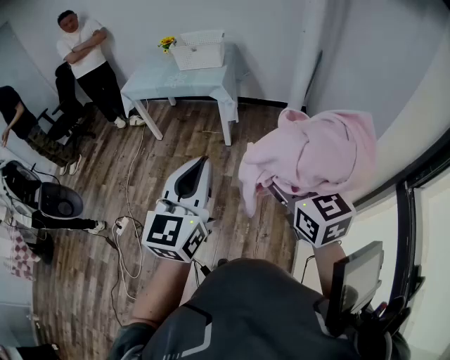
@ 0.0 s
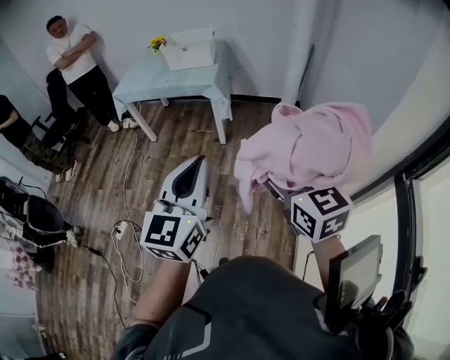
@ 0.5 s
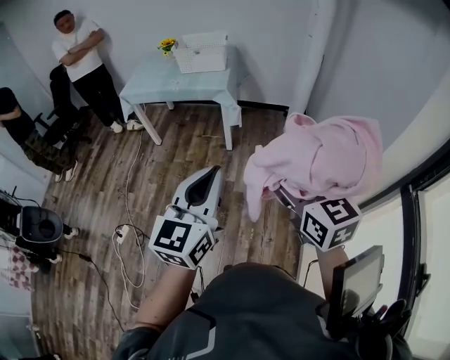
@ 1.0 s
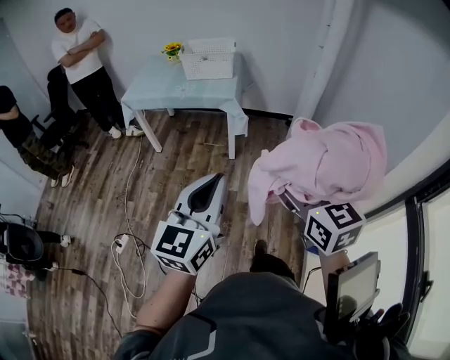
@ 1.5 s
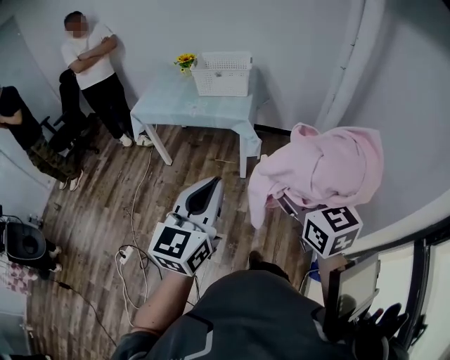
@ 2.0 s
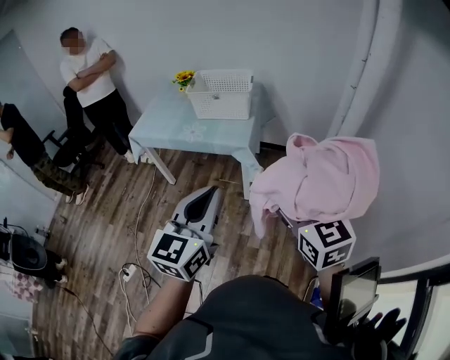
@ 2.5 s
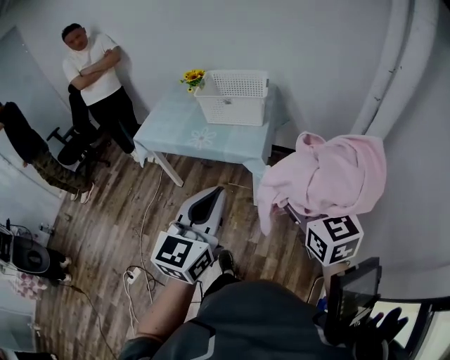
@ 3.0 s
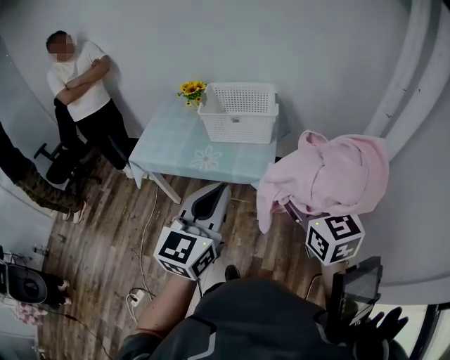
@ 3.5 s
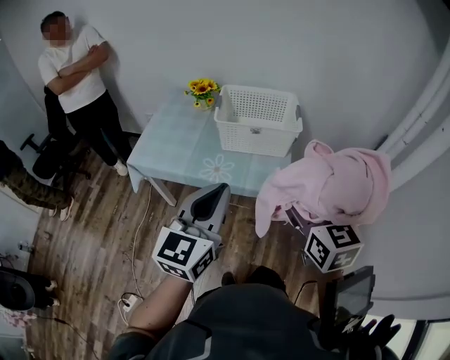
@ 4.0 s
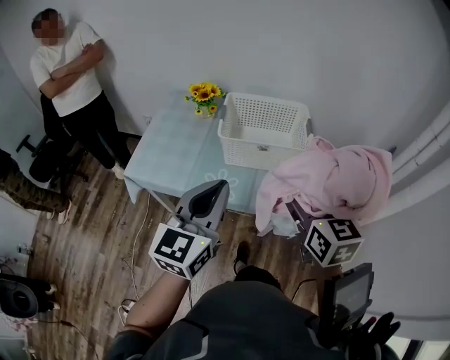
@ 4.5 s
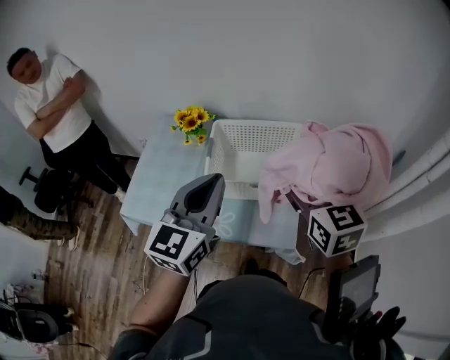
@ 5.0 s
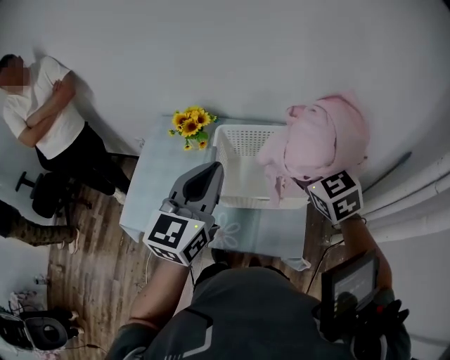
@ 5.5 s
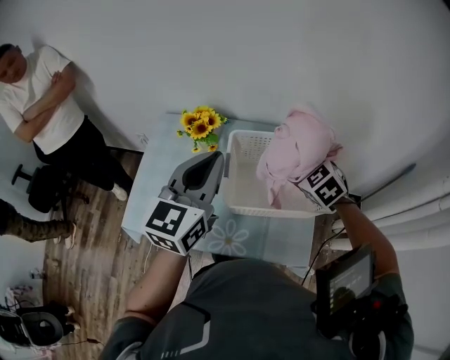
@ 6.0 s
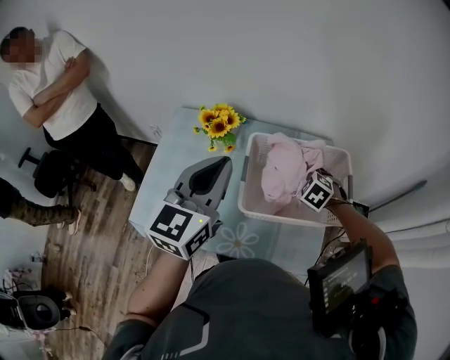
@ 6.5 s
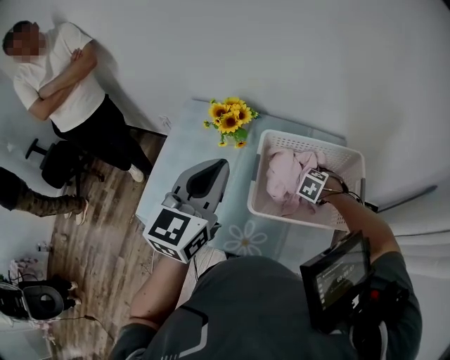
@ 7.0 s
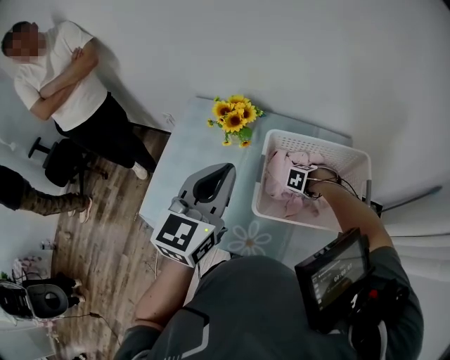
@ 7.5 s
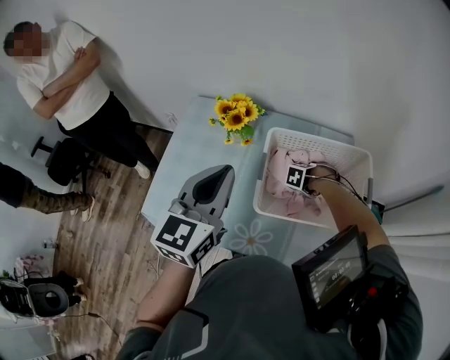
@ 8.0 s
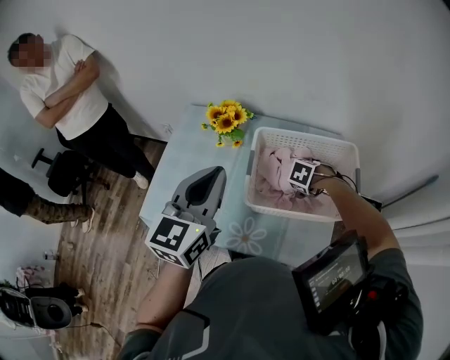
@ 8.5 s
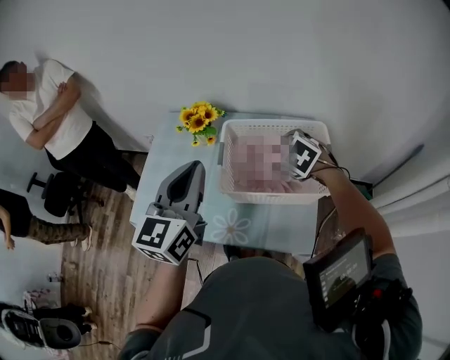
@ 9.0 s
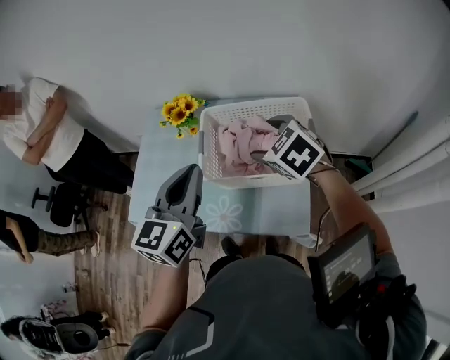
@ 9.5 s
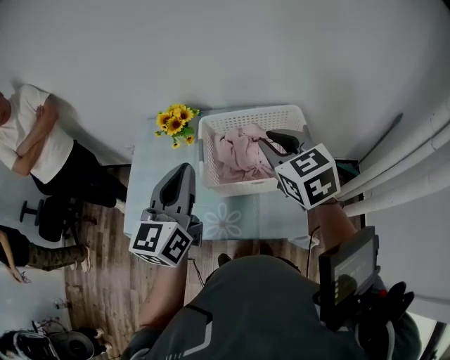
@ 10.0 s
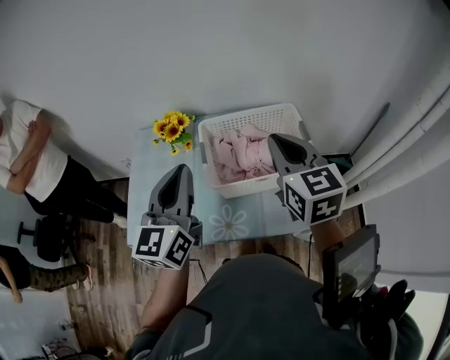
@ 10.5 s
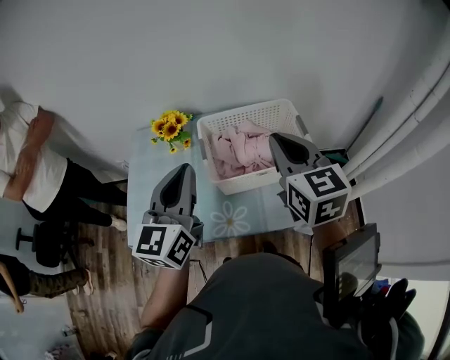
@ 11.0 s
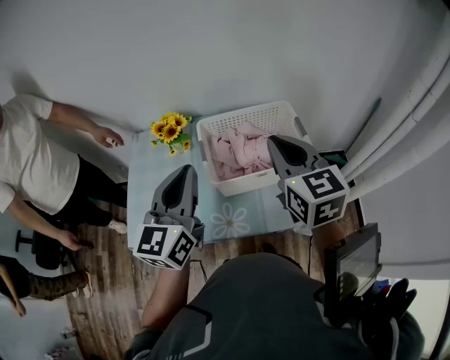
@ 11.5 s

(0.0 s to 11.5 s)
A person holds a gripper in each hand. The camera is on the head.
0.0 s - 2.0 s: Both grippers move forward and to the left, some 25 cm.
2.0 s - 4.0 s: The two grippers travel together, forward, roughly 40 cm.
4.0 s - 6.0 s: The pair of grippers is taken forward, some 40 cm. The right gripper turns by some 40 degrees.
6.0 s - 7.5 s: The left gripper moves roughly 5 cm; the right gripper is displaced downward by about 25 cm, and tilts its fingers some 30 degrees downward.
7.5 s - 9.5 s: The left gripper moves roughly 15 cm; the right gripper heads upward, covering roughly 30 cm, and tips its fingers upward by approximately 30 degrees.
9.5 s - 11.5 s: The right gripper moves upward and backward, roughly 15 cm, points its fingers about 30 degrees further upward, and closes. Meanwhile the left gripper goes about 5 cm to the left.

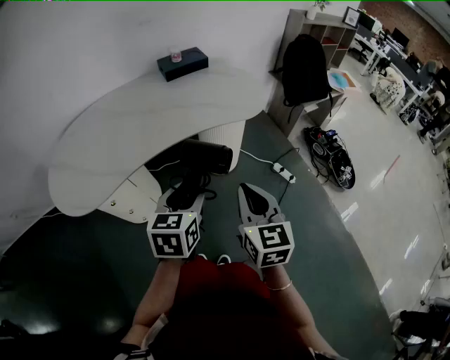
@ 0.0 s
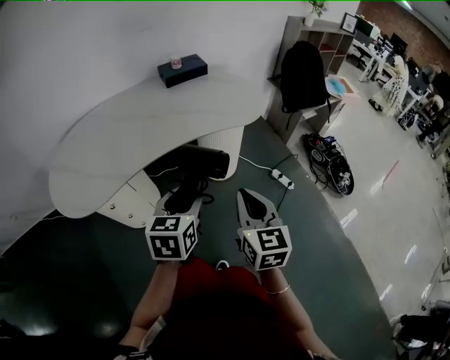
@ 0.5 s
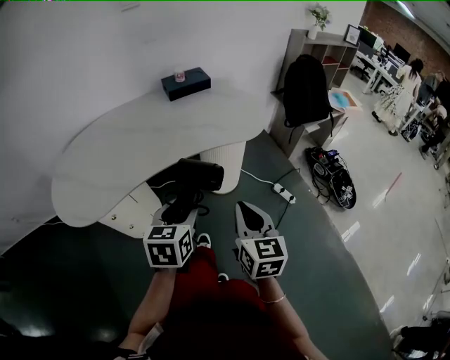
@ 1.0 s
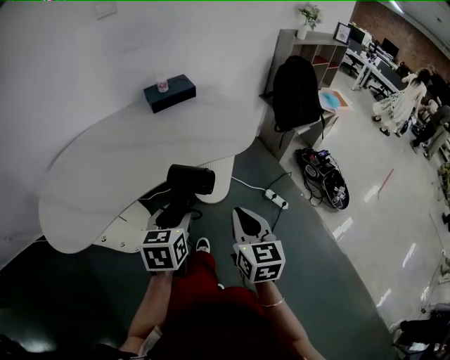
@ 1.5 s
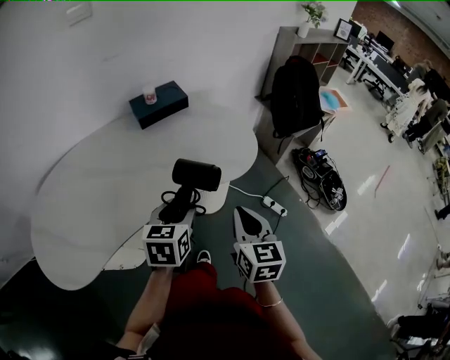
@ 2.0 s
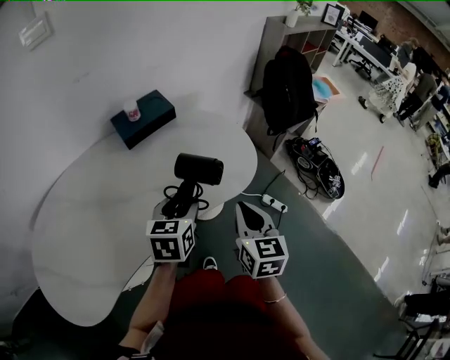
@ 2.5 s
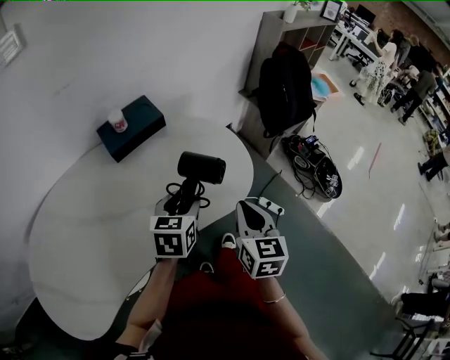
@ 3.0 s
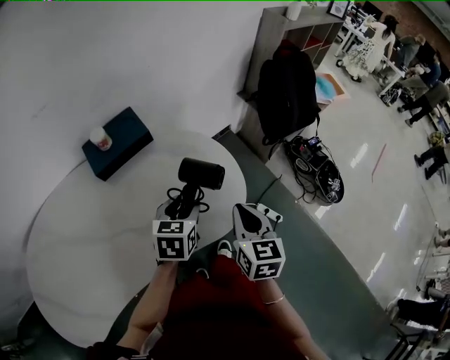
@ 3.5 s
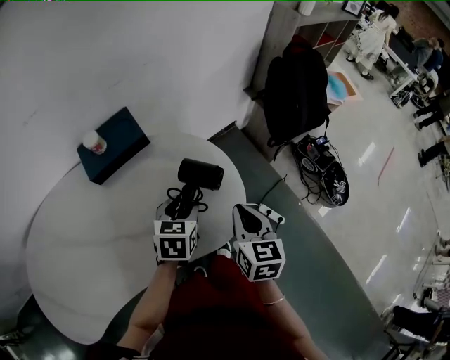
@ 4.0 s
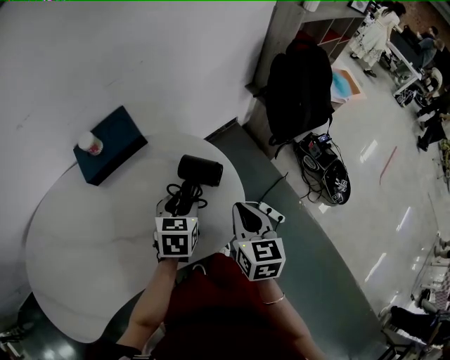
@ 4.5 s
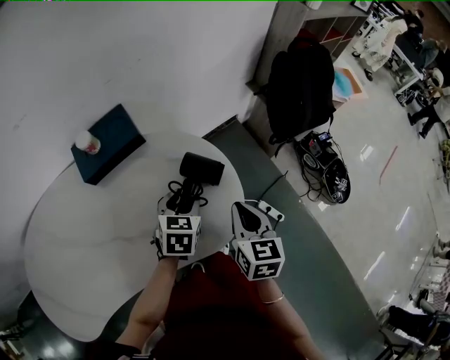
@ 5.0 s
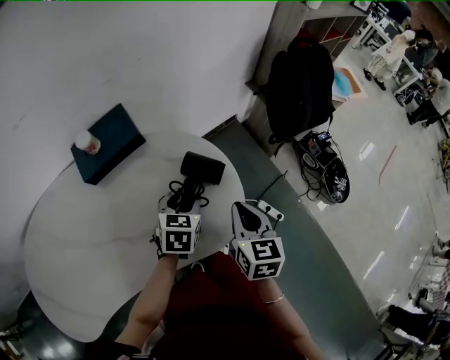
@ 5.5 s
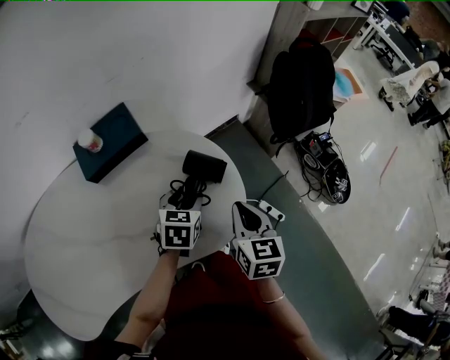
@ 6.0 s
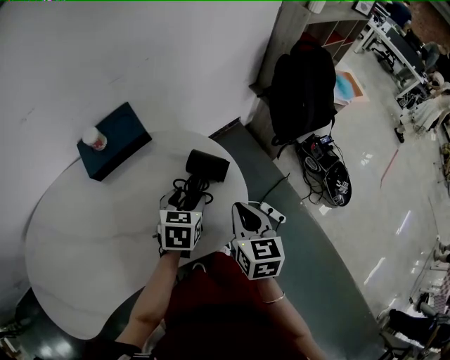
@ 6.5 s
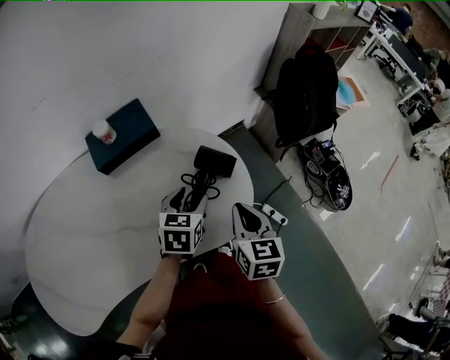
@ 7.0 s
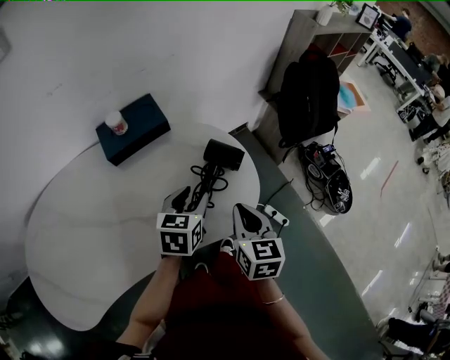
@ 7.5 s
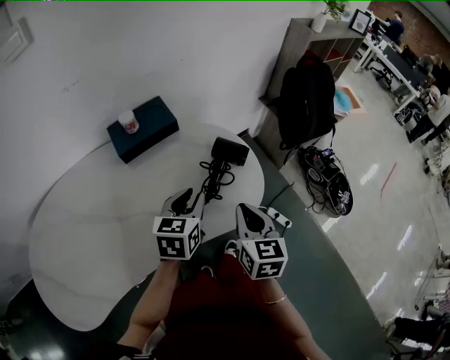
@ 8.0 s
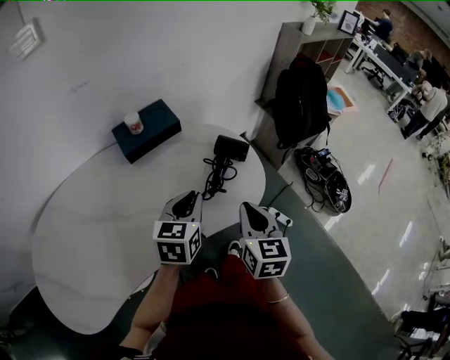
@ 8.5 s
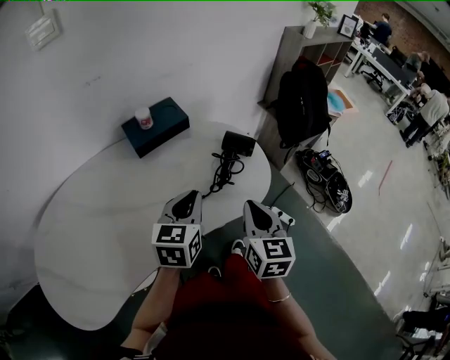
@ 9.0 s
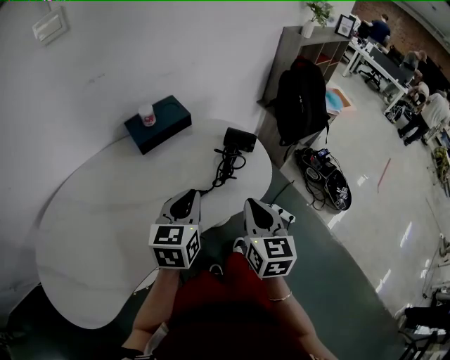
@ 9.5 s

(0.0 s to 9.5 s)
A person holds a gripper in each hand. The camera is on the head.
0.0 s - 2.0 s: The two grippers go approximately 20 cm forward.
2.0 s - 4.0 s: The grippers both shift forward by some 30 cm.
4.0 s - 5.5 s: There are only small adjustments of the grippers.
5.5 s - 7.5 s: The right gripper moves backward, approximately 5 cm. Meanwhile the left gripper moves backward and upward, approximately 10 cm.
7.5 s - 9.5 s: The left gripper goes approximately 20 cm backward, upward and to the left, and closes its fingers; the right gripper travels backward and upward by about 15 cm.

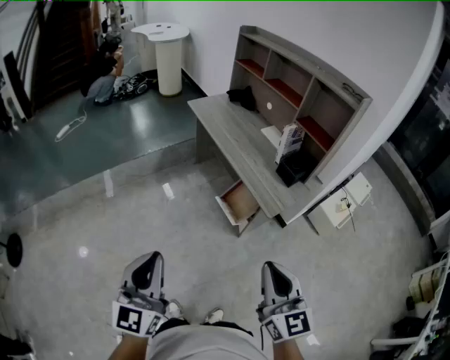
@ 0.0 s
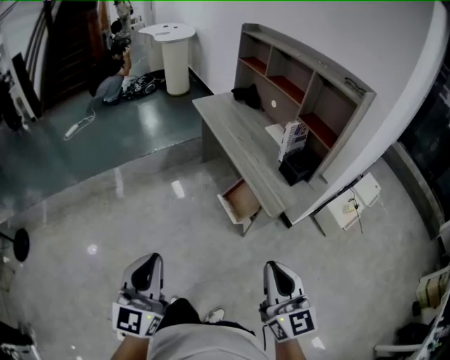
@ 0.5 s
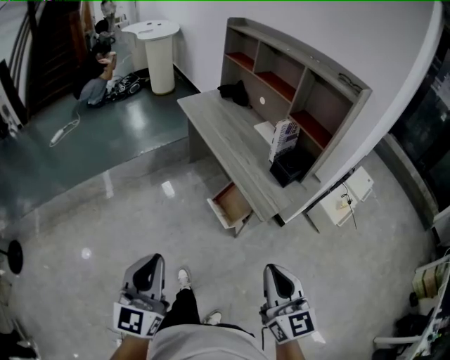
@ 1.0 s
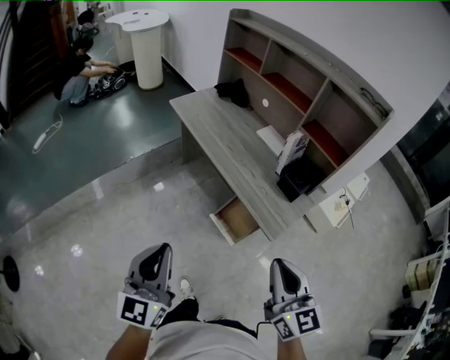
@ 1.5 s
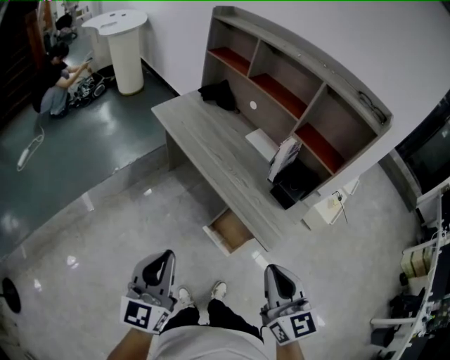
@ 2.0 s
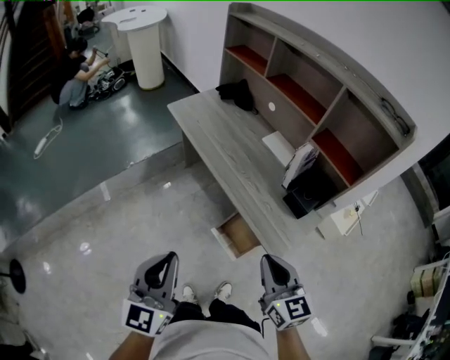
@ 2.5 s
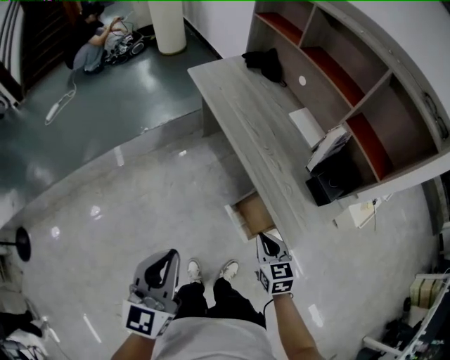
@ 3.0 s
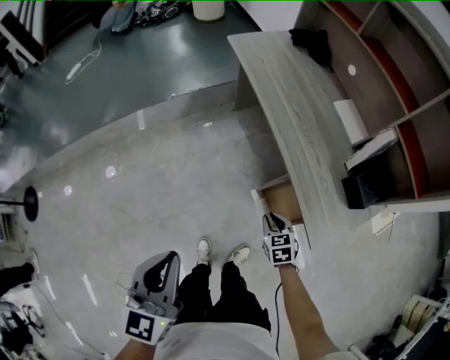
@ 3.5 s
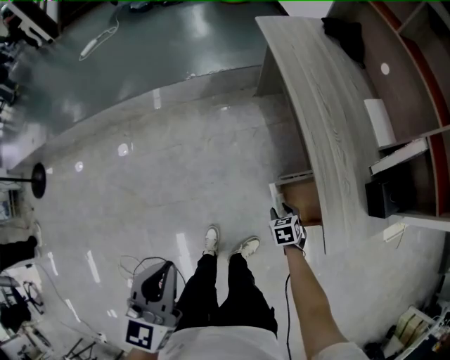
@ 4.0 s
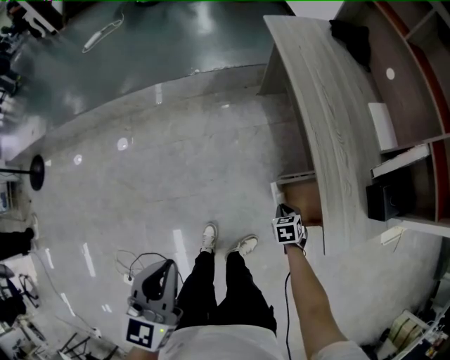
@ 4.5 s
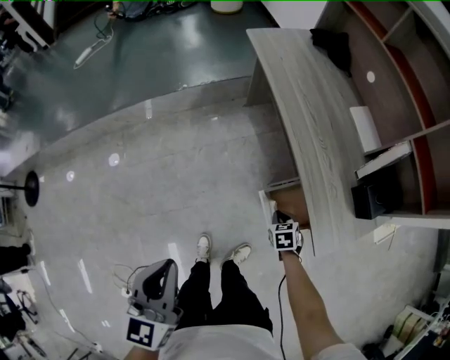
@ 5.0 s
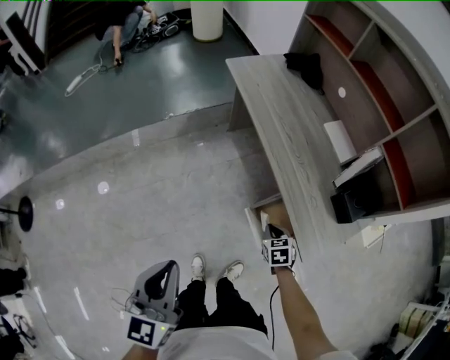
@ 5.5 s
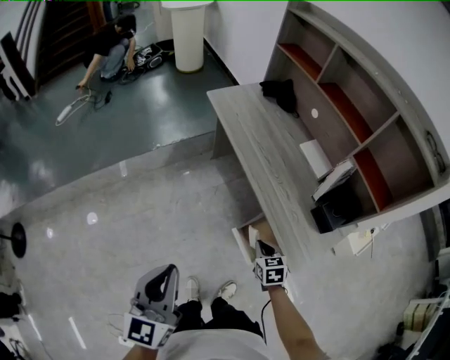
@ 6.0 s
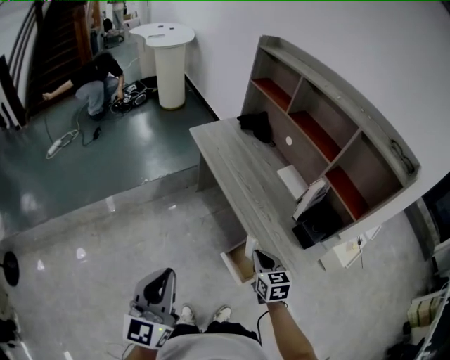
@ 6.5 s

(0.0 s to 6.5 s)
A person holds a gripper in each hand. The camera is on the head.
0.0 s - 2.0 s: Both grippers travel together forward, approximately 25 cm.
2.0 s - 4.5 s: The right gripper moves downward, about 50 cm, tilts its fingers roughly 60 degrees downward, and opens, then closes again. Meanwhile the left gripper goes some 10 cm downward, and rotates approximately 40 degrees.
4.5 s - 6.5 s: The left gripper goes some 15 cm upward and forward, and changes its angle by some 30 degrees; the right gripper shifts about 35 cm upward, and tilts its fingers approximately 40 degrees upward.
